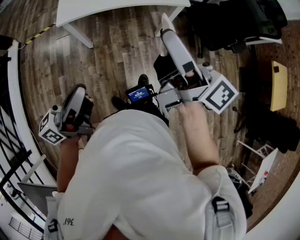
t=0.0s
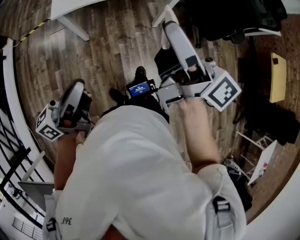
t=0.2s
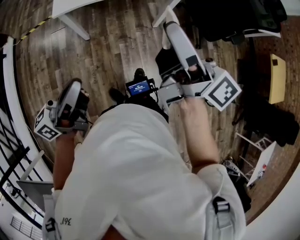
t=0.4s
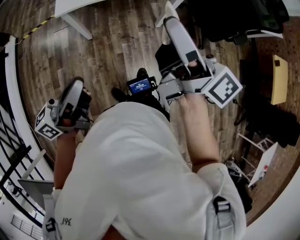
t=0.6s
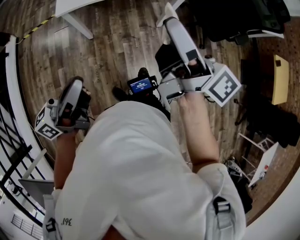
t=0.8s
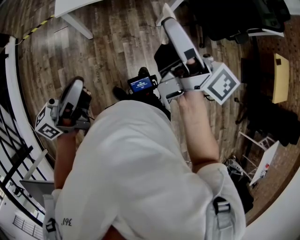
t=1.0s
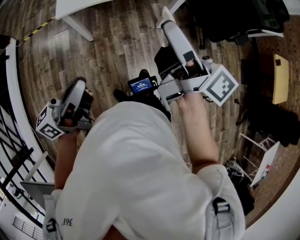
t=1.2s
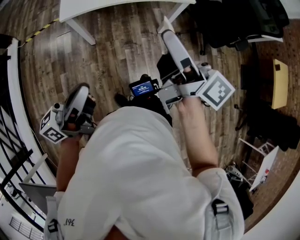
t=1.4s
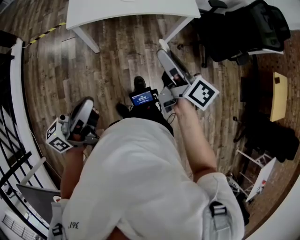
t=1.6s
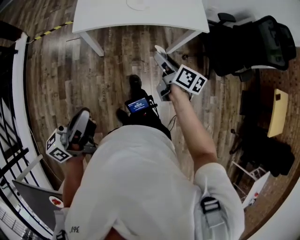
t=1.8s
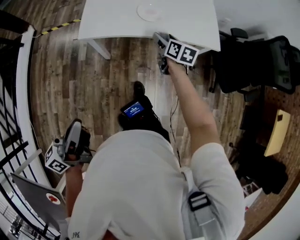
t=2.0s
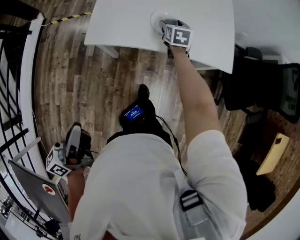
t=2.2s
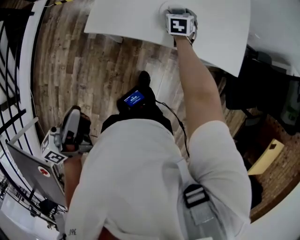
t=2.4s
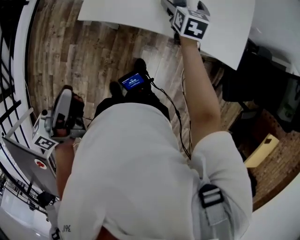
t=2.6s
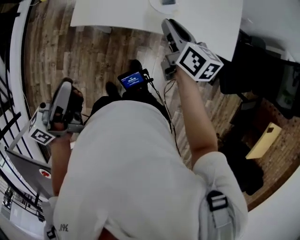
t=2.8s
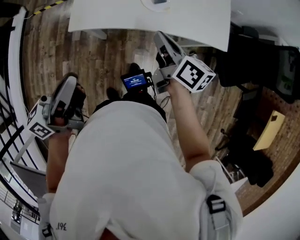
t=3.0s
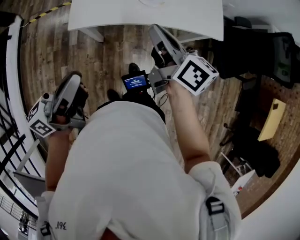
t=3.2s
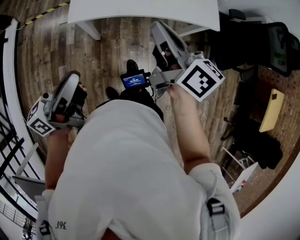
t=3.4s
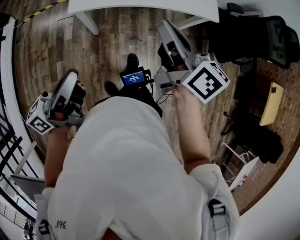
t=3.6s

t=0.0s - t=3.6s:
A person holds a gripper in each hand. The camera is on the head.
t=0.0s - t=1.8s: The right gripper shifts about 30 cm downward and forward, and tilts its fingers roughly 40 degrees downward, while the left gripper goes approximately 5 cm to the left.
t=1.8s - t=3.6s: The right gripper travels upward and to the left by roughly 20 cm, goes forward and returns, some 40 cm each way, rotates approximately 20 degrees, and closes up; the left gripper goes some 15 cm forward and to the left.

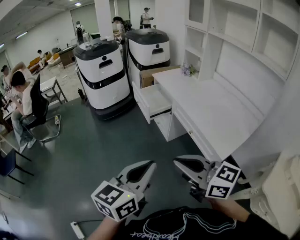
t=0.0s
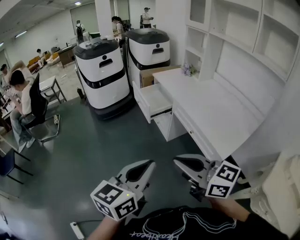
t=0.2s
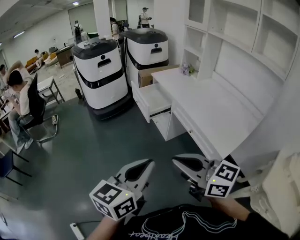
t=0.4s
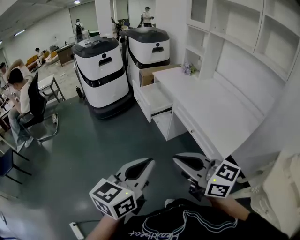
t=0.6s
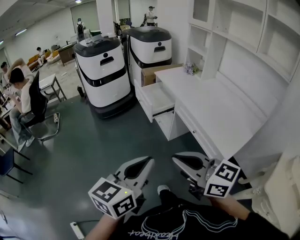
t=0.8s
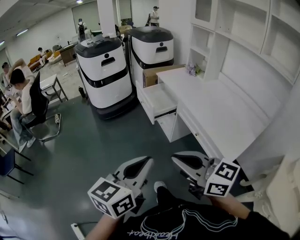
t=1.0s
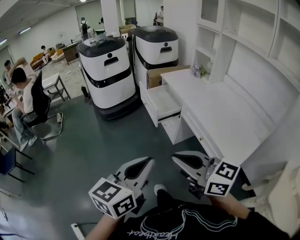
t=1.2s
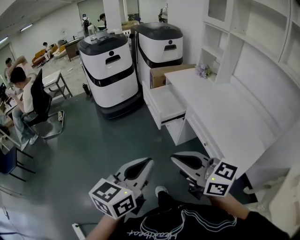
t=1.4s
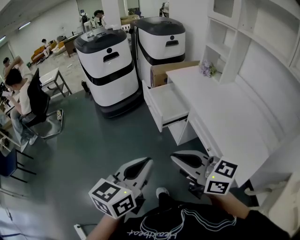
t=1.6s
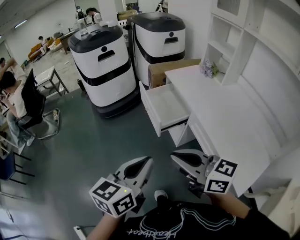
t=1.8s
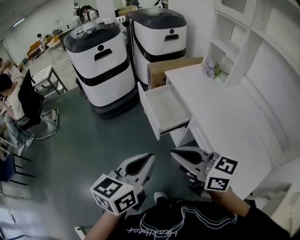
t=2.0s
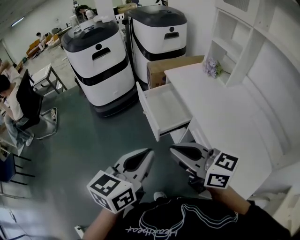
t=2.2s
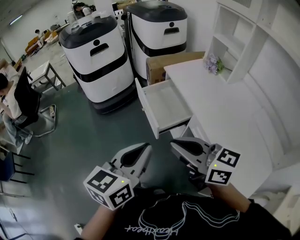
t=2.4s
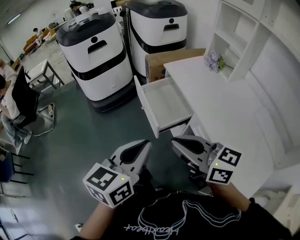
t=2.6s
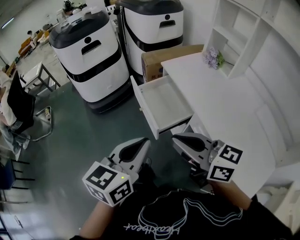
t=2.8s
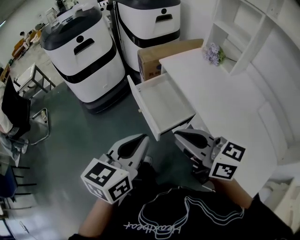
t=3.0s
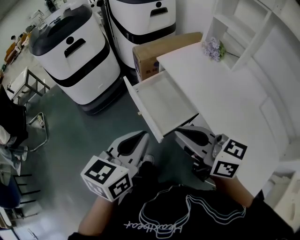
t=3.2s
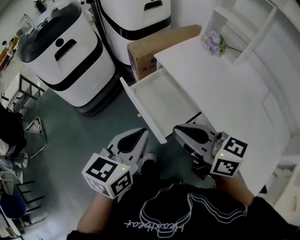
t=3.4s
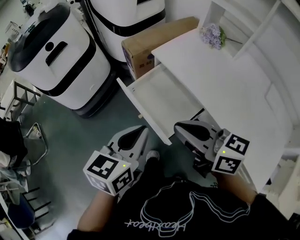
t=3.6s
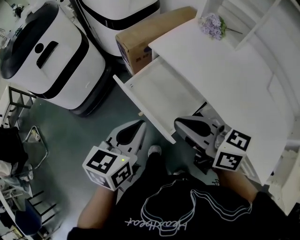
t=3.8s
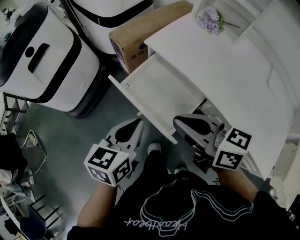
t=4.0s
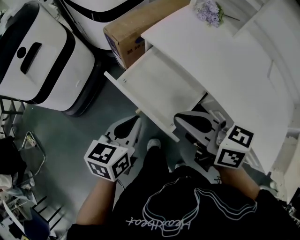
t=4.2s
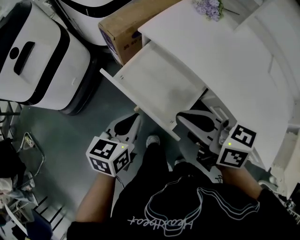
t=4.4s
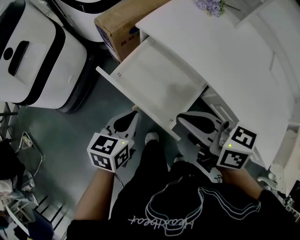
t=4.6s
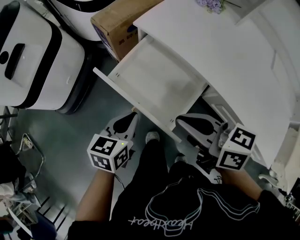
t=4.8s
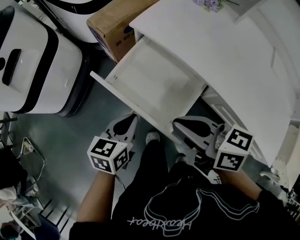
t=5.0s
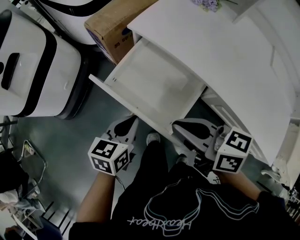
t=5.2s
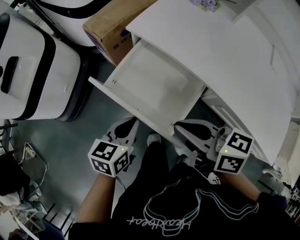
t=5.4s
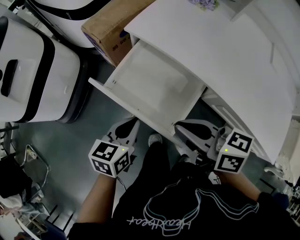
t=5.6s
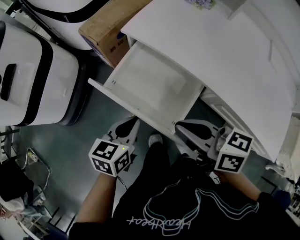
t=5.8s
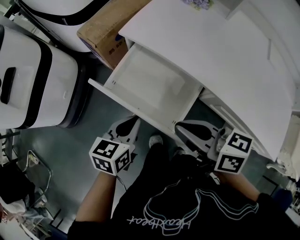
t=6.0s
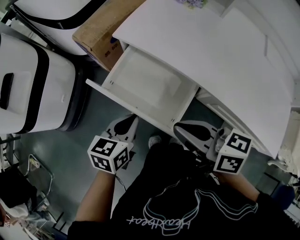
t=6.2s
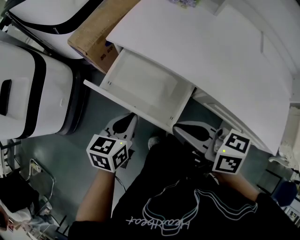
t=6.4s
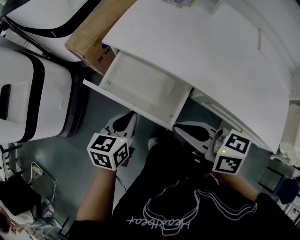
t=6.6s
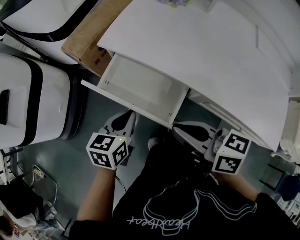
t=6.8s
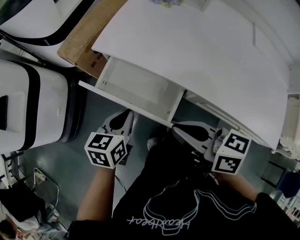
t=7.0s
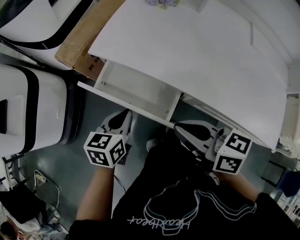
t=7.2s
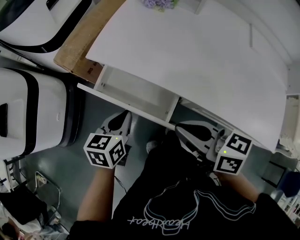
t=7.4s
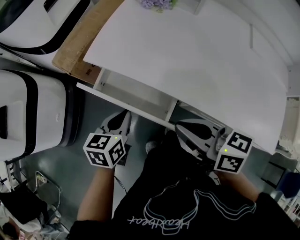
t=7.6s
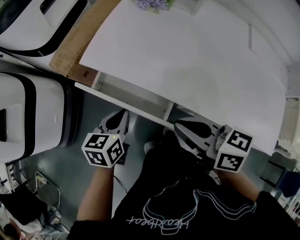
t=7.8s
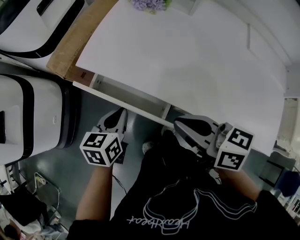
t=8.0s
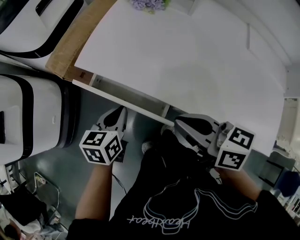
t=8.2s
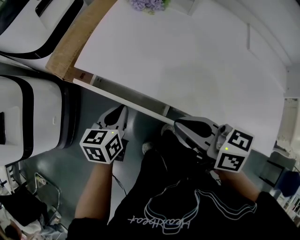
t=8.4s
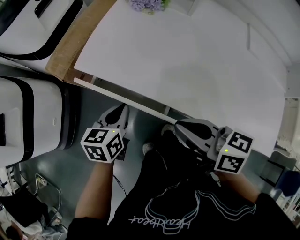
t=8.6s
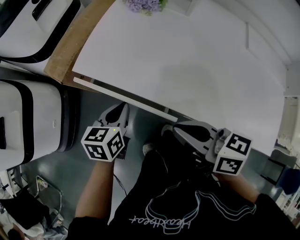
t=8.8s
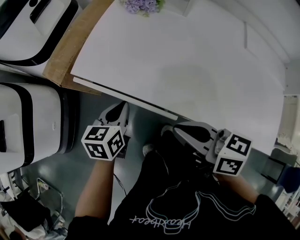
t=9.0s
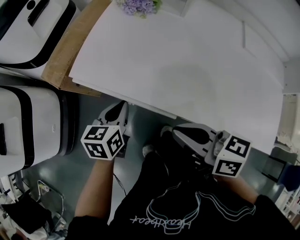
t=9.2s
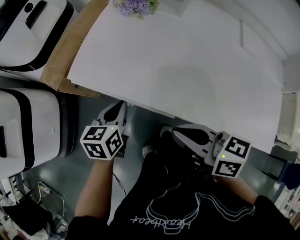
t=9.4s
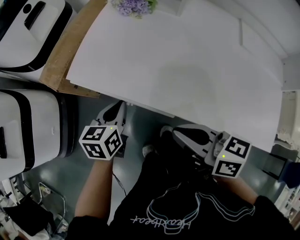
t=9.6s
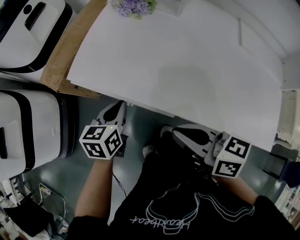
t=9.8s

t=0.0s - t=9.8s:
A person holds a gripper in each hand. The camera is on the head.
t=0.0s - t=1.4s: The two grippers go approximately 15 cm forward.
t=1.4s - t=2.8s: Both grippers travel together forward, some 30 cm.
t=2.8s - t=4.2s: The two grippers go roughly 25 cm forward and downward. The left gripper changes its angle by approximately 20 degrees, while the right gripper changes its angle by some 30 degrees.
t=4.2s - t=5.6s: Both grippers travel together downward, some 10 cm.
t=5.6s - t=7.0s: The right gripper is displaced to the right by roughly 5 cm; the left gripper heads forward and to the right, covering some 10 cm.
t=7.0s - t=8.4s: The right gripper travels to the right by some 5 cm; the left gripper is displaced forward and to the right by approximately 10 cm.
t=8.4s - t=9.8s: There are only small adjustments of the grippers.

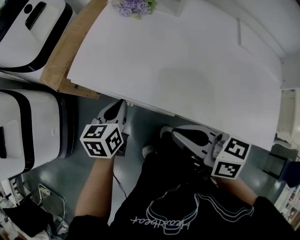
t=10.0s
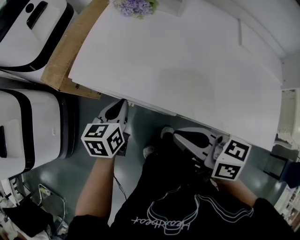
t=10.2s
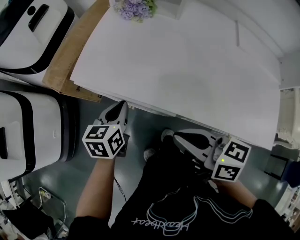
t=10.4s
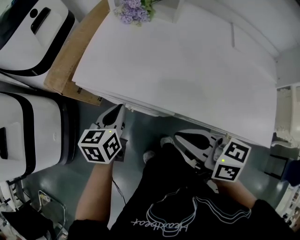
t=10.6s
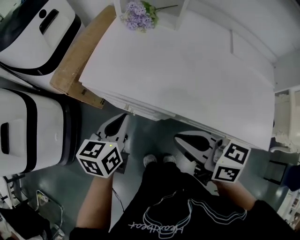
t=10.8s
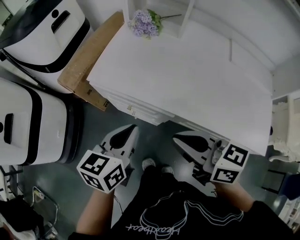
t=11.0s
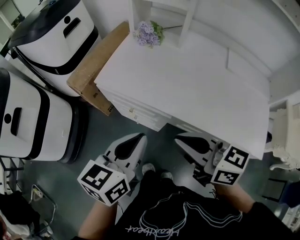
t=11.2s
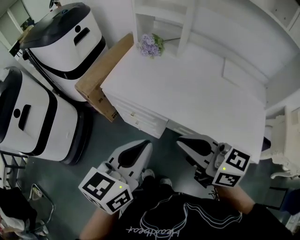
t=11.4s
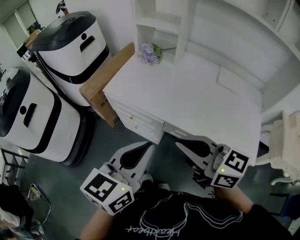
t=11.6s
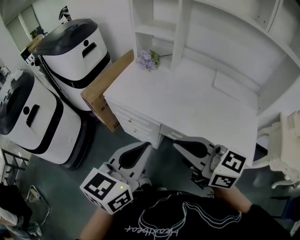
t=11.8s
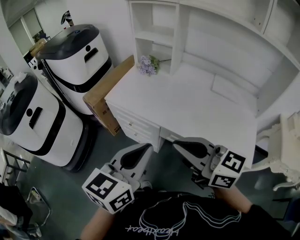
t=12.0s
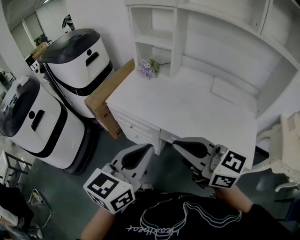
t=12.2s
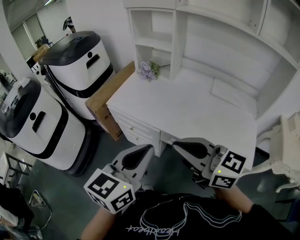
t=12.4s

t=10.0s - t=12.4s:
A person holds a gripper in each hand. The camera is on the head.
t=10.0s - t=11.2s: The left gripper shifts approximately 25 cm upward and backward. The right gripper travels upward and backward by some 10 cm.
t=11.2s - t=12.4s: The left gripper heads upward, backward and to the right, covering approximately 20 cm. The right gripper goes roughly 15 cm upward and backward.

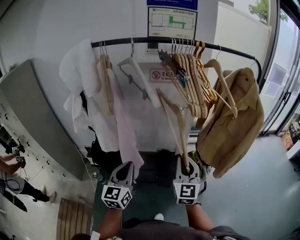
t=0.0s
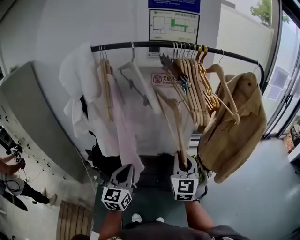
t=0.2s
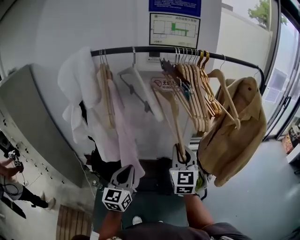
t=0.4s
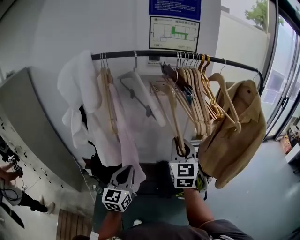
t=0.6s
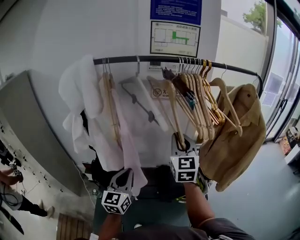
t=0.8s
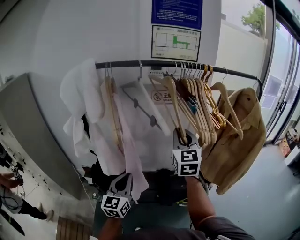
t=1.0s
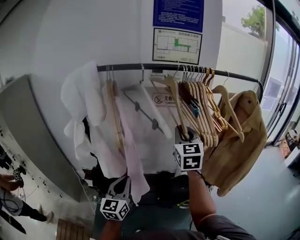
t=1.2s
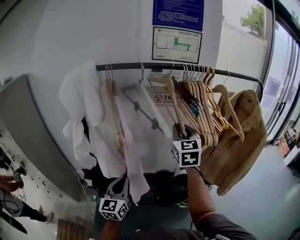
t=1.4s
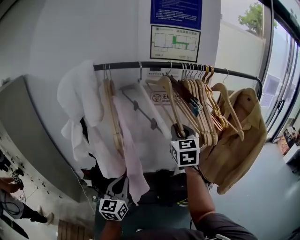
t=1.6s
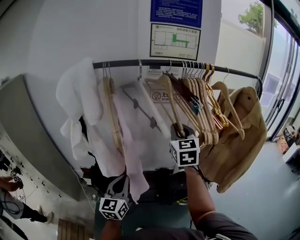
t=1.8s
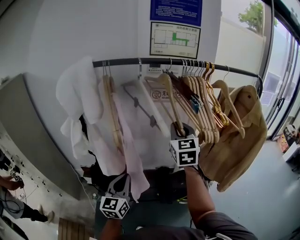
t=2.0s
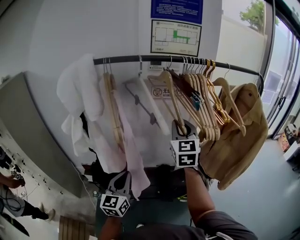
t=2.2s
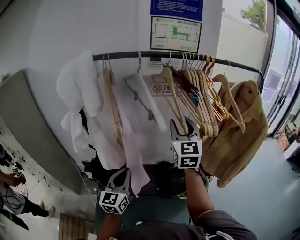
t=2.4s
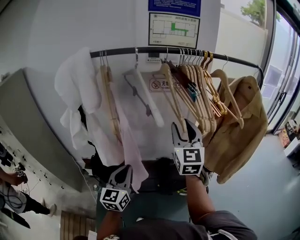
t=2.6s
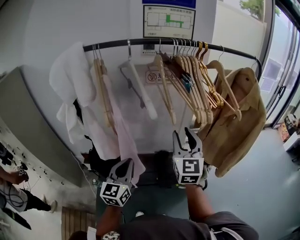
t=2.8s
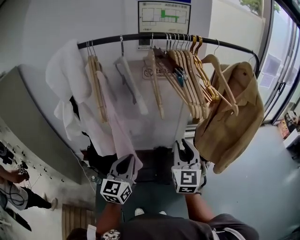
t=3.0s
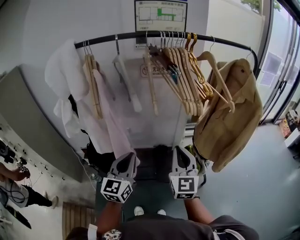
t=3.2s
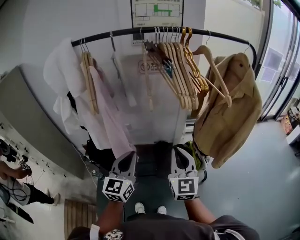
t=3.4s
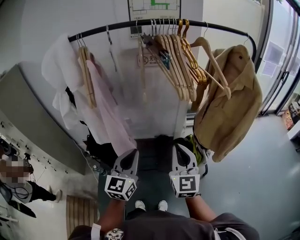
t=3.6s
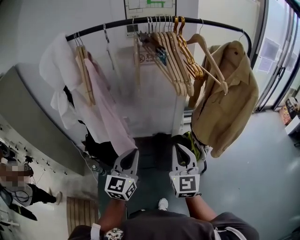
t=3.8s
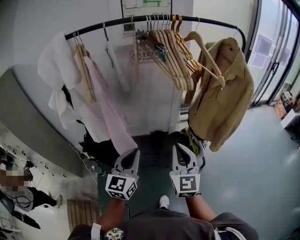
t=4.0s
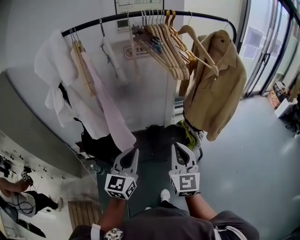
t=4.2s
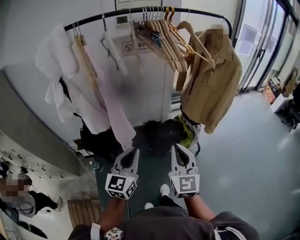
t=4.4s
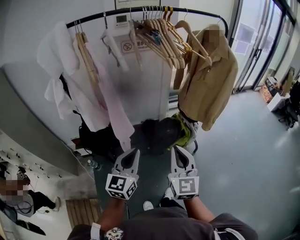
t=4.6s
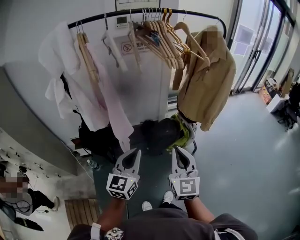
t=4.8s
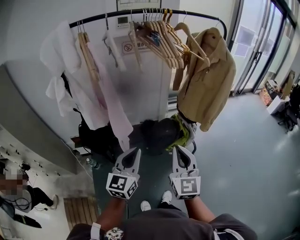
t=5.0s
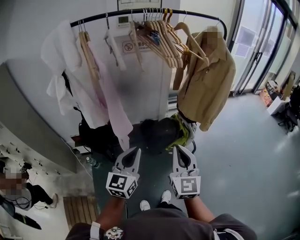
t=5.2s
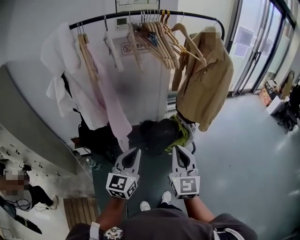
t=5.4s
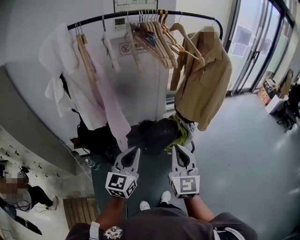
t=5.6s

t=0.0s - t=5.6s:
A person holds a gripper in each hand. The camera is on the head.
t=0.0s - t=1.4s: The left gripper heads to the left and forward, covering approximately 10 cm. The right gripper goes roughly 25 cm forward, upward and to the left.
t=1.4s - t=2.8s: The right gripper heads backward and downward, covering approximately 10 cm, and opens up, while the left gripper heads to the right, covering some 5 cm.
t=2.8s - t=4.2s: The right gripper moves backward and downward, roughly 20 cm, and closes, while the left gripper travels backward and to the right by roughly 10 cm.
t=4.2s - t=5.6s: The grippers both shift backward by roughly 10 cm.

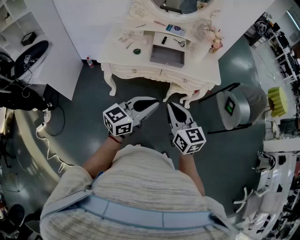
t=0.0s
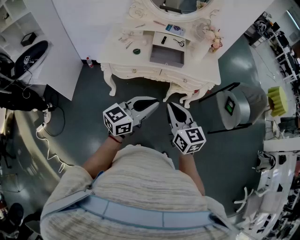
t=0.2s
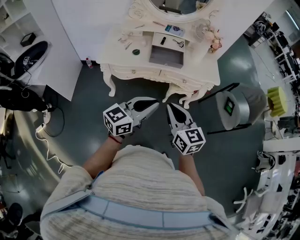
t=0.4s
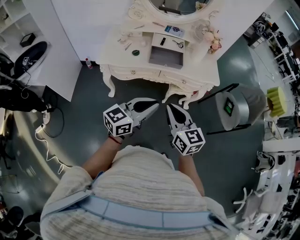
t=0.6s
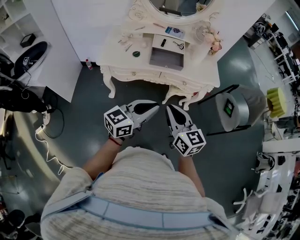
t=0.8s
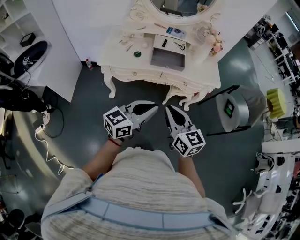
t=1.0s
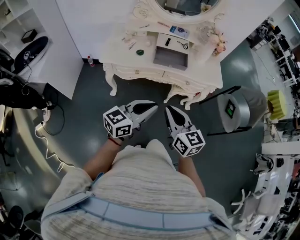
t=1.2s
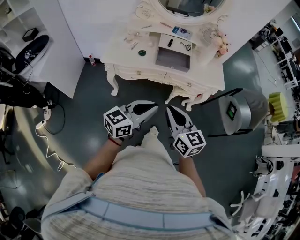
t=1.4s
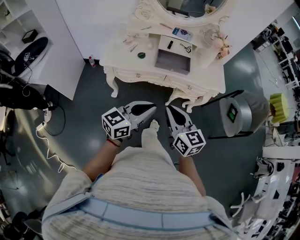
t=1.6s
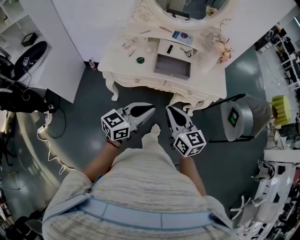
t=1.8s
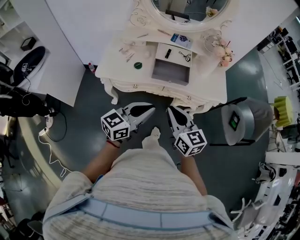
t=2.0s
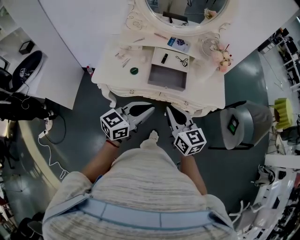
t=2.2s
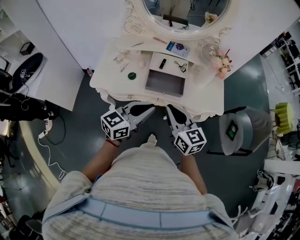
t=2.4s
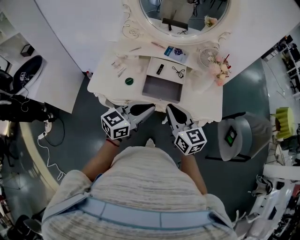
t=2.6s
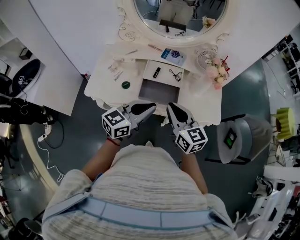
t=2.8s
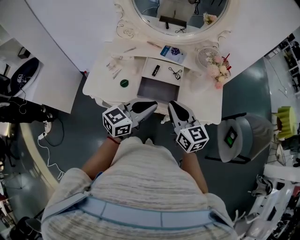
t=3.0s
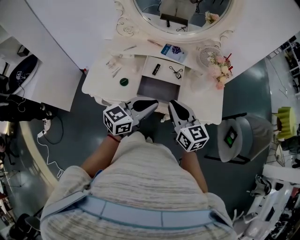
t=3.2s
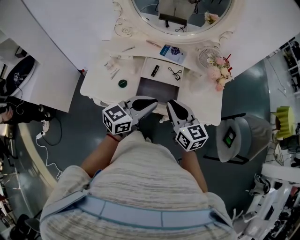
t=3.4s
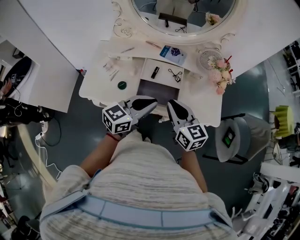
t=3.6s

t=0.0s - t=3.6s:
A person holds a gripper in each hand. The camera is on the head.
t=0.0s - t=1.8s: Both grippers travel together forward, some 10 cm.
t=1.8s - t=3.6s: Both grippers travel together forward, roughly 25 cm.
